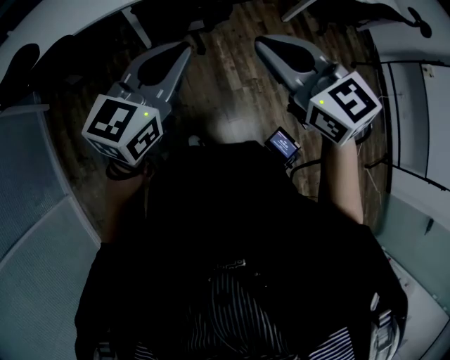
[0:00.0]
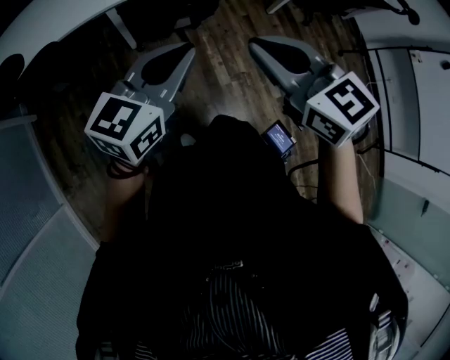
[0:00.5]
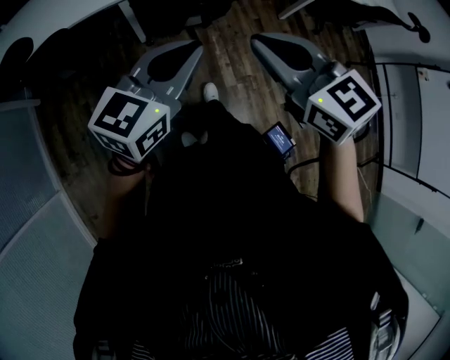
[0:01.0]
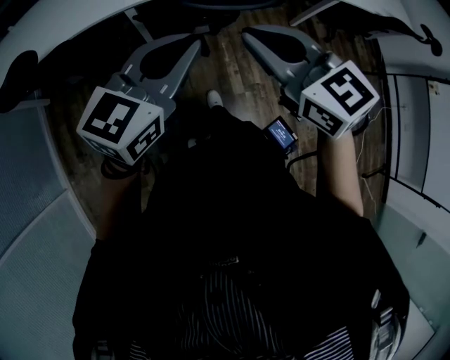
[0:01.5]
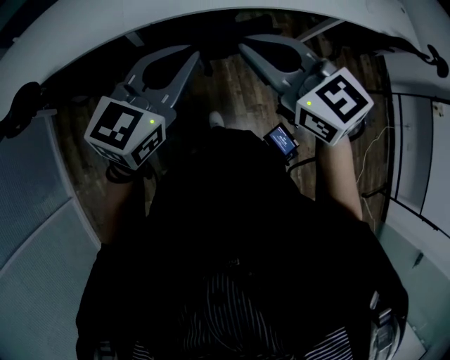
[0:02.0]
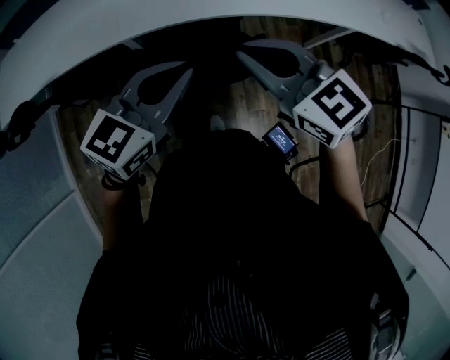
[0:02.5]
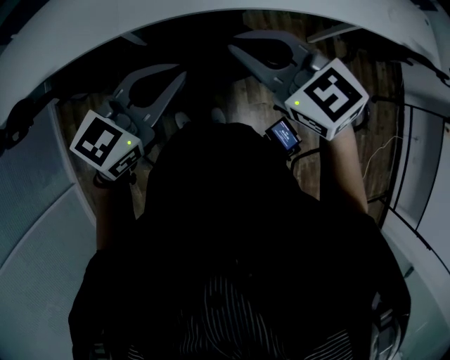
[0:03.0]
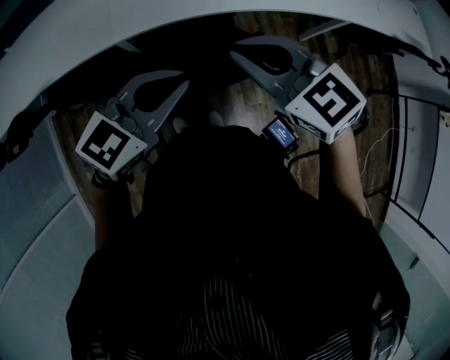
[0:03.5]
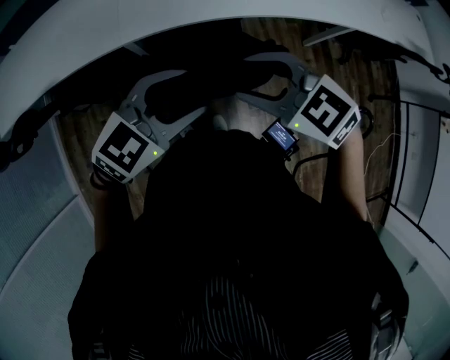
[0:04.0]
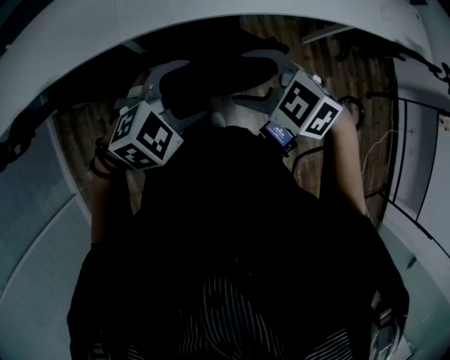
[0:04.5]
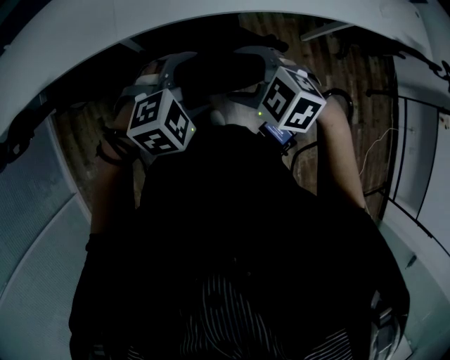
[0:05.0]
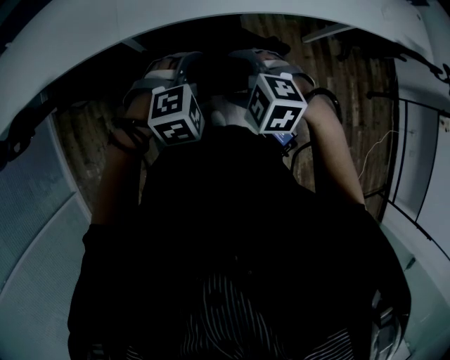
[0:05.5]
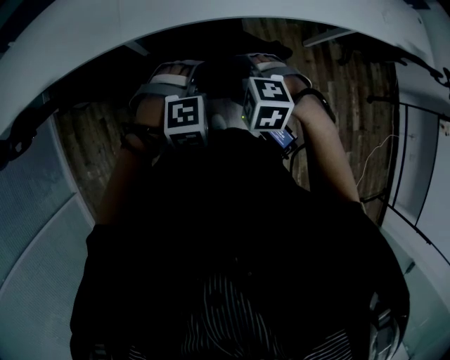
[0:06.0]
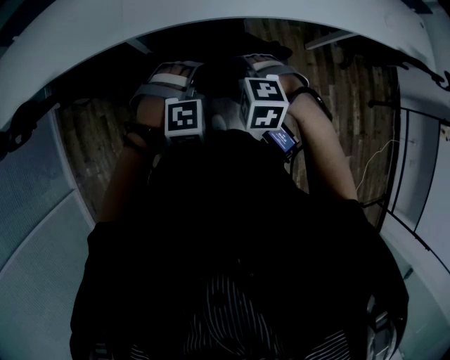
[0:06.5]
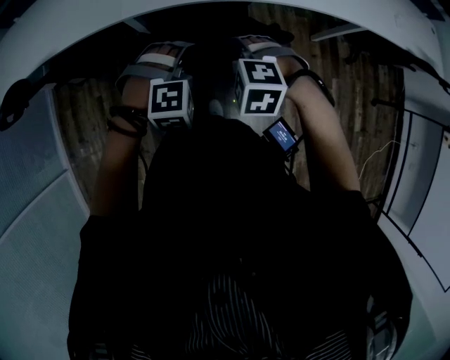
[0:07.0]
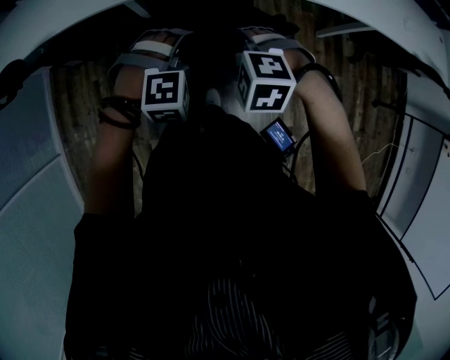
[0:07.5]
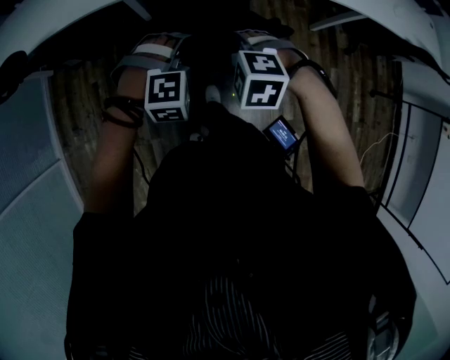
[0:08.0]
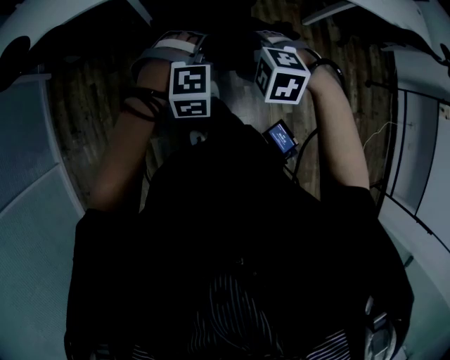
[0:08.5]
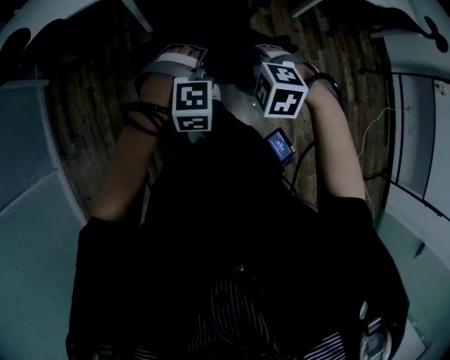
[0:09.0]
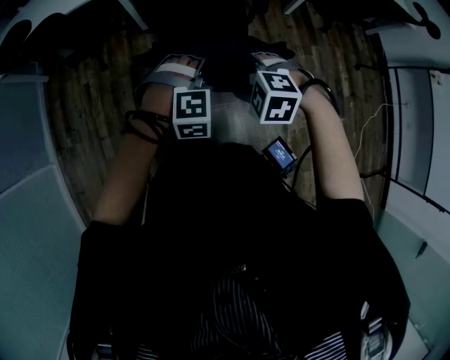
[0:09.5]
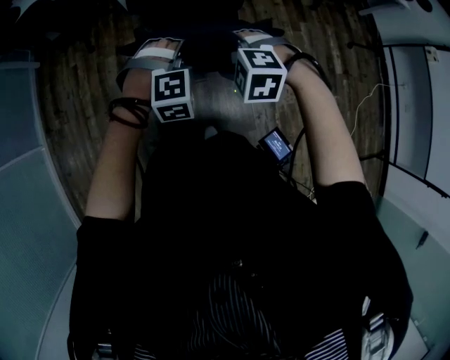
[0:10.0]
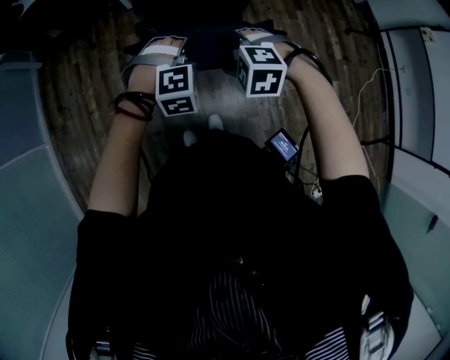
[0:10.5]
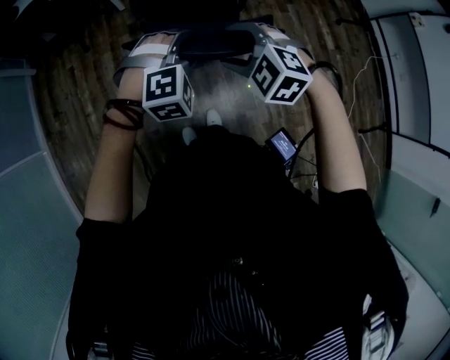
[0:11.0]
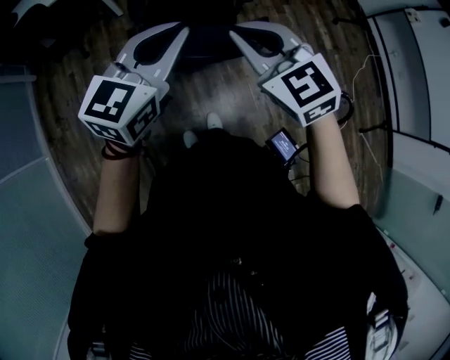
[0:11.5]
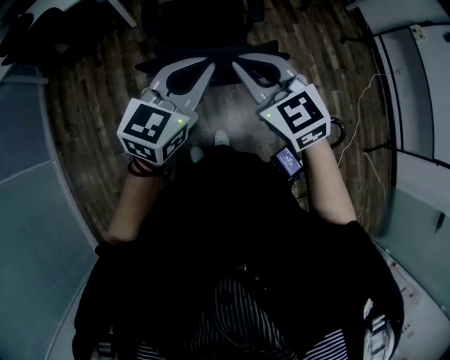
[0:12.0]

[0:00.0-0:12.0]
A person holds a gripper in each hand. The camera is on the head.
0.0 to 2.0 s: Both grippers travel together forward, approximately 20 cm.
2.0 to 4.0 s: The right gripper ends up some 10 cm from where it was, rotates approximately 30 degrees, and opens its fingers. The left gripper changes place by roughly 10 cm, swivels some 30 degrees, and opens its fingers.
4.0 to 6.0 s: Both grippers move downward, about 15 cm. The left gripper tilts its fingers about 30 degrees downward. The right gripper points its fingers roughly 30 degrees further downward, and opens its fingers.
6.0 to 8.0 s: Both grippers travel together backward, some 10 cm.
8.0 to 10.0 s: The pair of grippers is taken backward, roughly 50 cm.
10.0 to 12.0 s: The grippers both shift upward and backward by roughly 20 cm. The left gripper tilts its fingers approximately 40 degrees upward, and closes. The right gripper tilts its fingers roughly 40 degrees upward, and closes up.

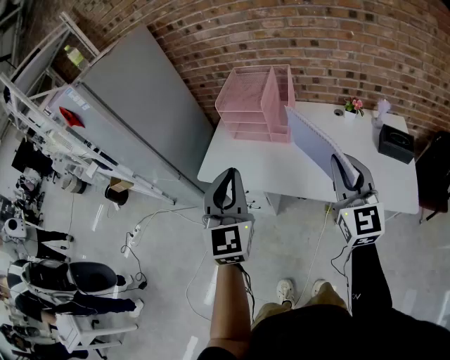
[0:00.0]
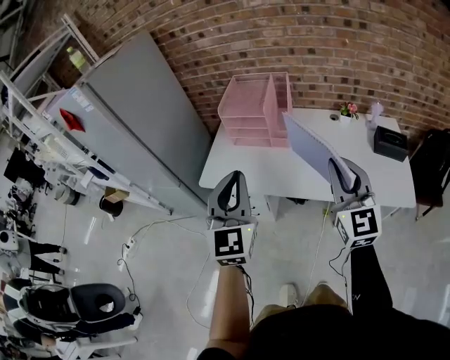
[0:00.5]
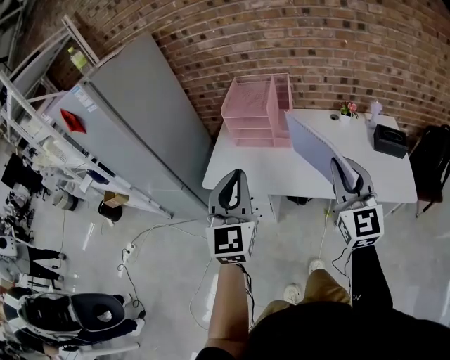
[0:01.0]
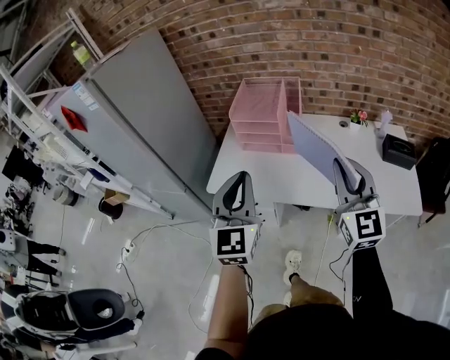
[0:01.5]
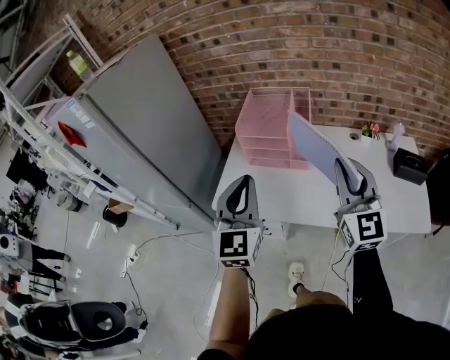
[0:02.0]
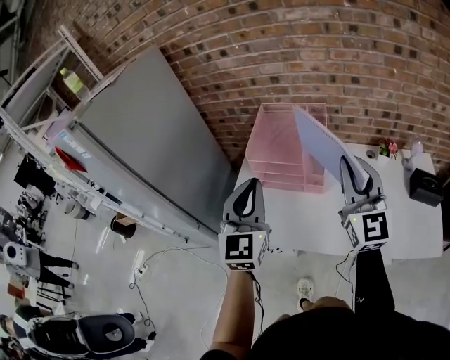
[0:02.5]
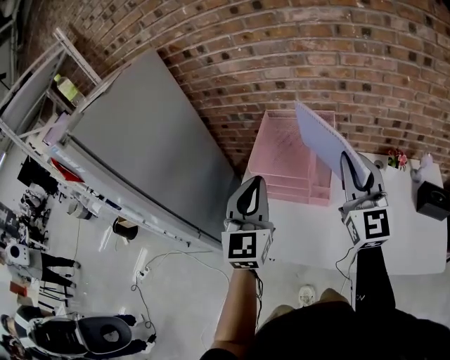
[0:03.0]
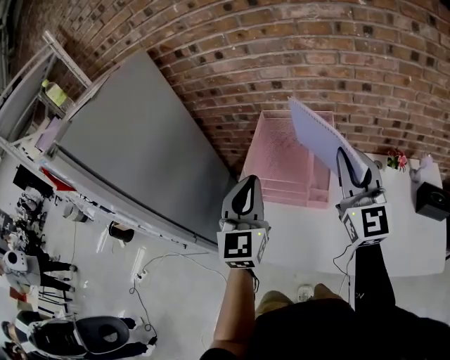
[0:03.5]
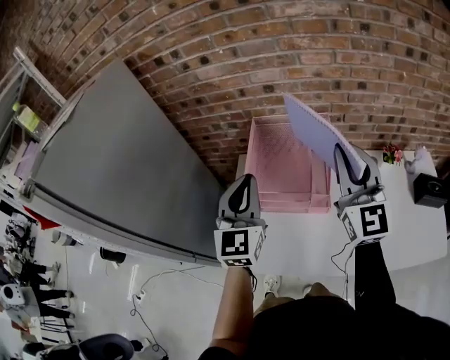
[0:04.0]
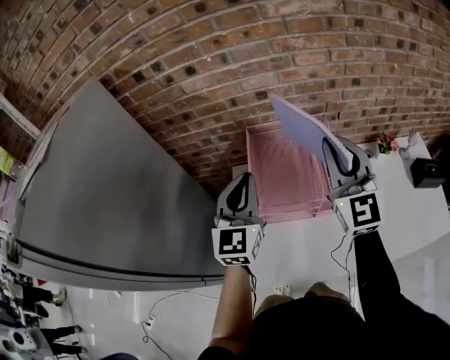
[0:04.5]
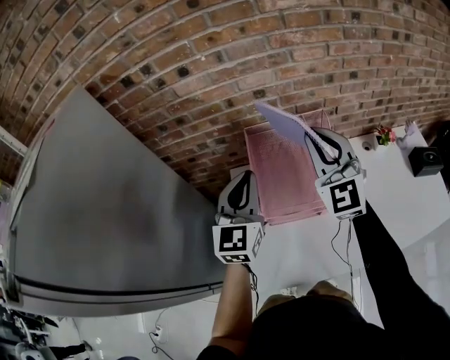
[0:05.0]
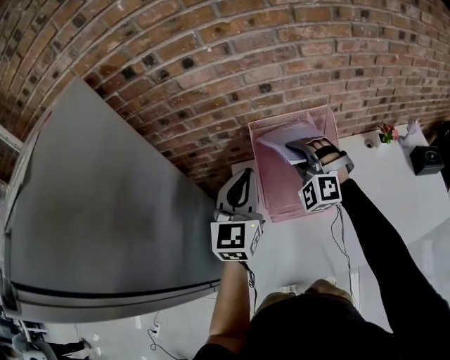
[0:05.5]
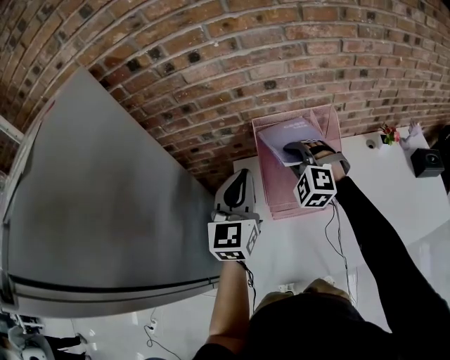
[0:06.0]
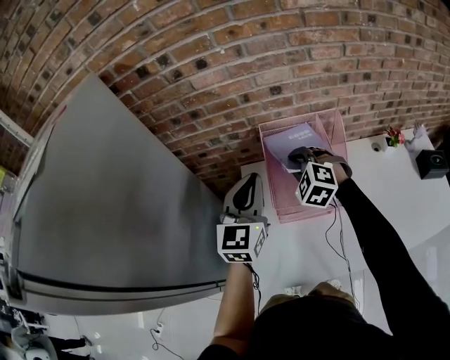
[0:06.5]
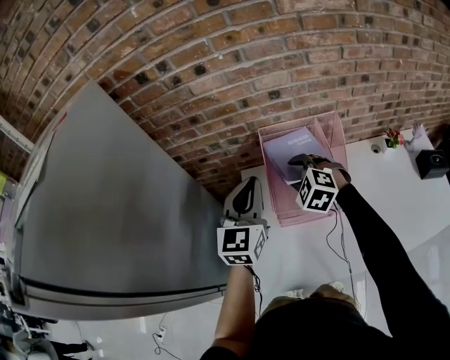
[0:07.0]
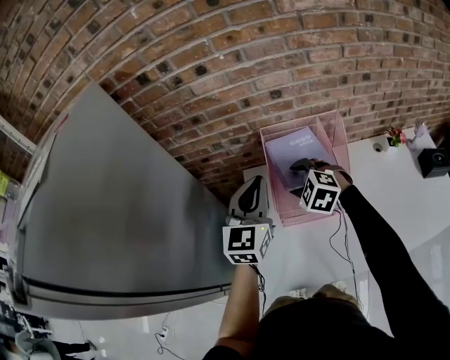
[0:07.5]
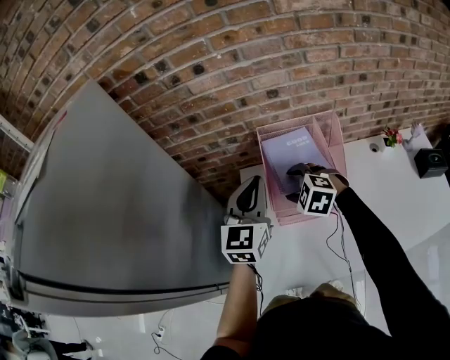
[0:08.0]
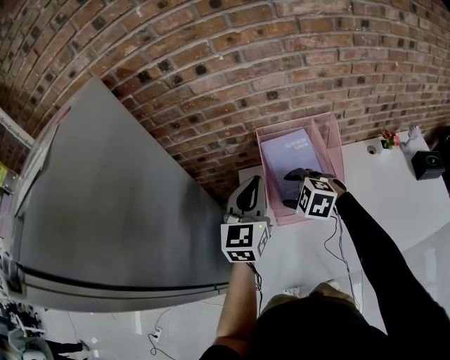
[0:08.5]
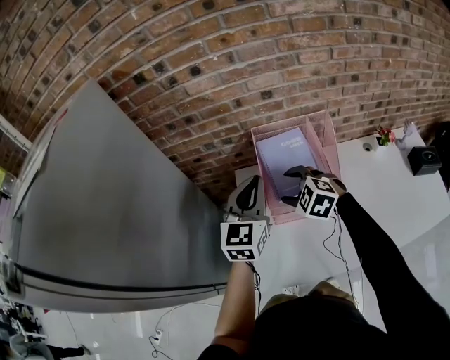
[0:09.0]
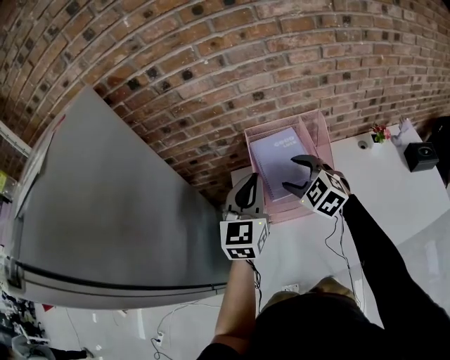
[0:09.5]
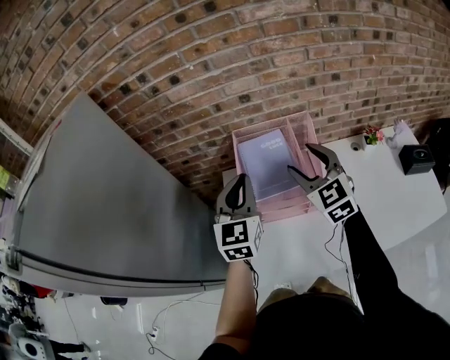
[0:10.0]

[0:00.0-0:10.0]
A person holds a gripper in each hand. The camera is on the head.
0.0 to 2.0 s: The right gripper goes roughly 15 cm to the left and forward. The left gripper travels forward and to the left by approximately 15 cm.
2.0 to 4.0 s: The grippers both shift forward by approximately 25 cm.
4.0 to 6.0 s: The left gripper shifts approximately 15 cm forward and to the left, while the right gripper shifts about 30 cm to the left, downward and forward, and tilts its fingers roughly 40 degrees downward.
6.0 to 8.0 s: The right gripper goes some 10 cm downward and backward, turns by some 30 degrees, and opens its fingers.
8.0 to 10.0 s: The left gripper moves approximately 5 cm, while the right gripper goes some 20 cm upward and to the right, and tilts its fingers about 40 degrees upward.

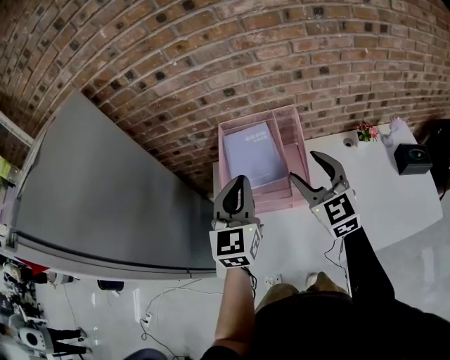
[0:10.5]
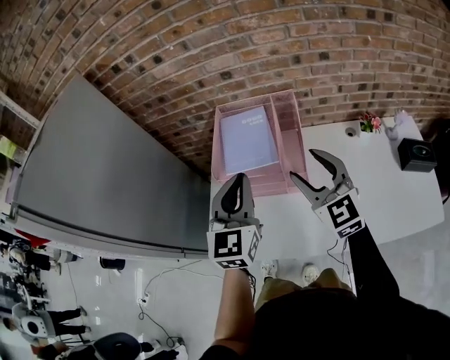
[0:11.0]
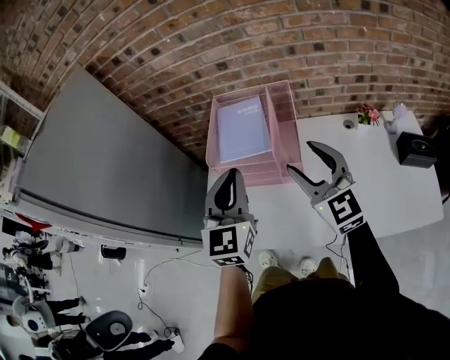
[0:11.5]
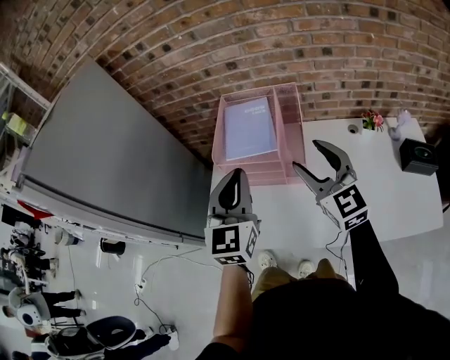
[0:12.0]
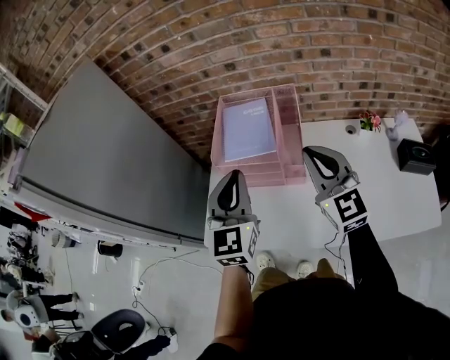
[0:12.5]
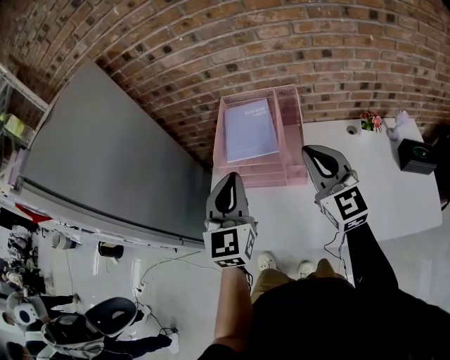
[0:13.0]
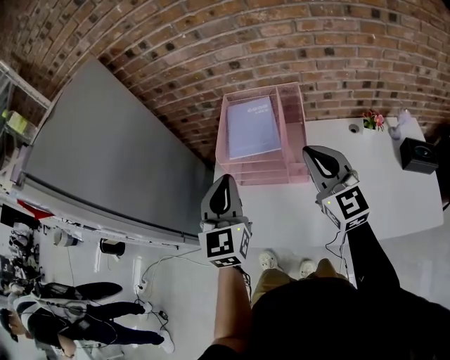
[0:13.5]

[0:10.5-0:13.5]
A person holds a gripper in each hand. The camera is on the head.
10.5 to 12.0 s: Both grippers move backward, approximately 10 cm.
12.0 to 13.5 s: The right gripper closes.

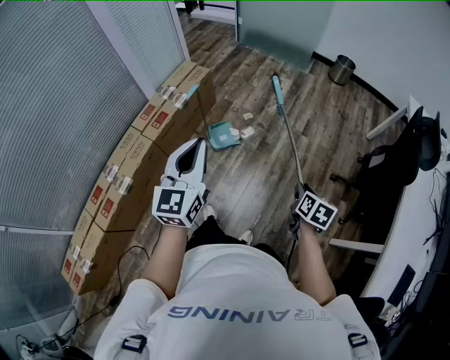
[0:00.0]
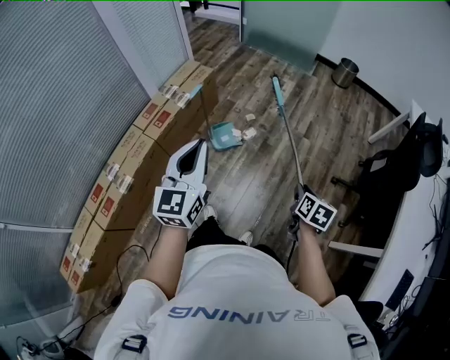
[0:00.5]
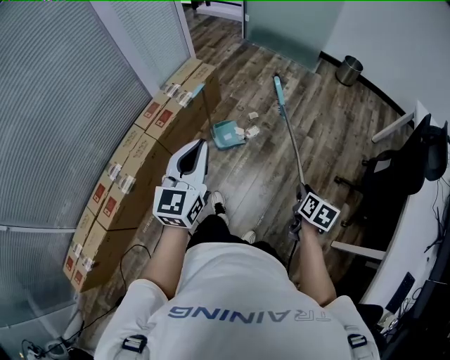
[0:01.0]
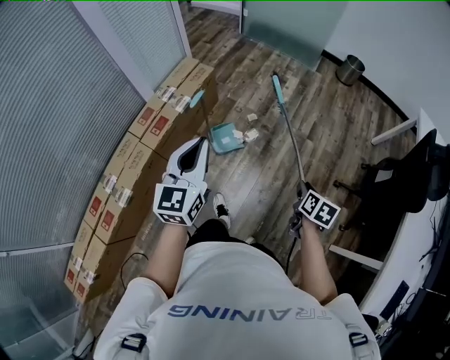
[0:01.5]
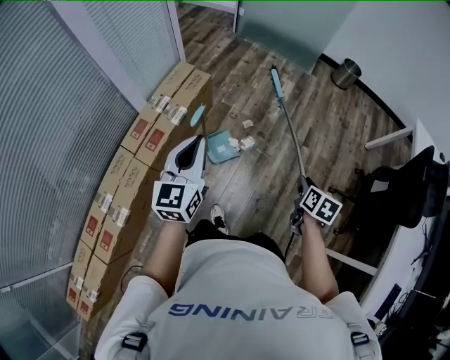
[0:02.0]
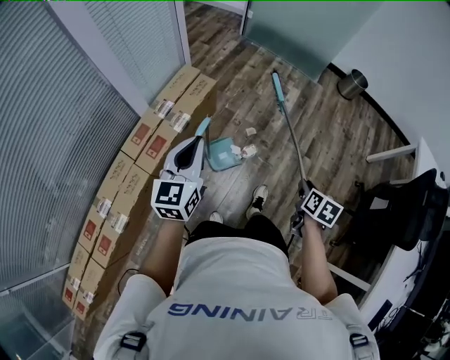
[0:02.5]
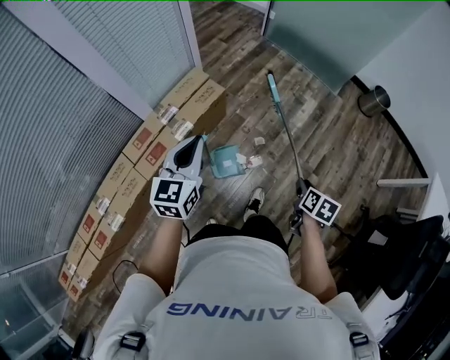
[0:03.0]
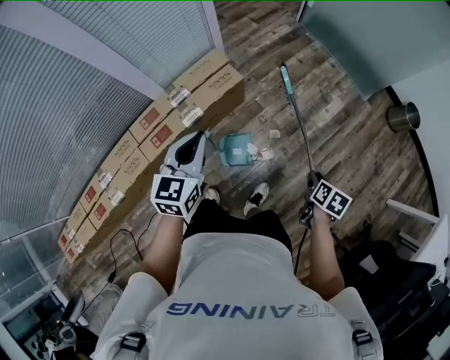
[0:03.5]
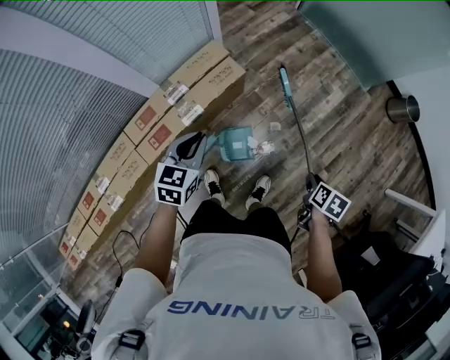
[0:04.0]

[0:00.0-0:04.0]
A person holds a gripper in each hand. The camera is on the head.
0.0 to 2.0 s: The grippers both shift forward and to the left by about 25 cm.
2.0 to 4.0 s: The left gripper shifts about 30 cm forward and downward, and angles its fingers downward, by some 30 degrees. Meanwhile the right gripper moves forward, approximately 35 cm, and rotates some 20 degrees.
